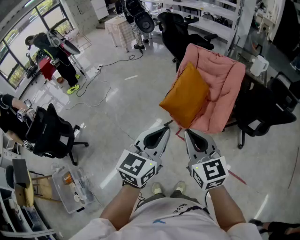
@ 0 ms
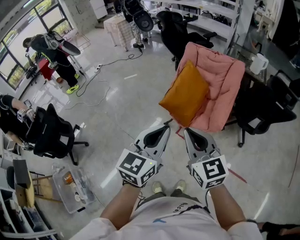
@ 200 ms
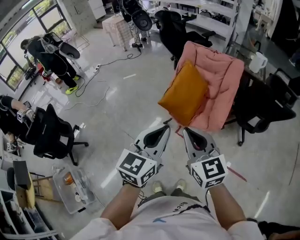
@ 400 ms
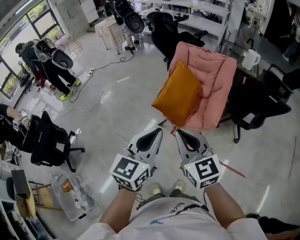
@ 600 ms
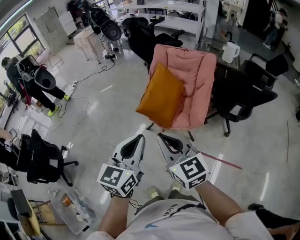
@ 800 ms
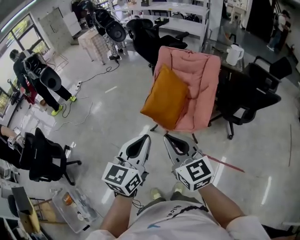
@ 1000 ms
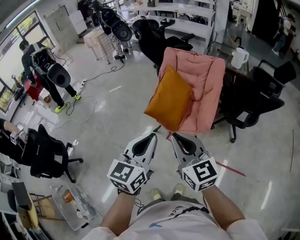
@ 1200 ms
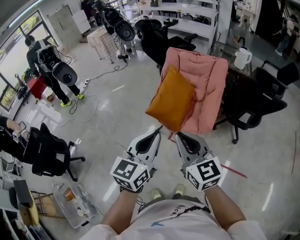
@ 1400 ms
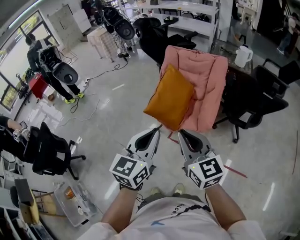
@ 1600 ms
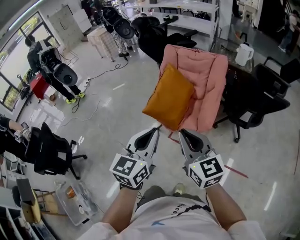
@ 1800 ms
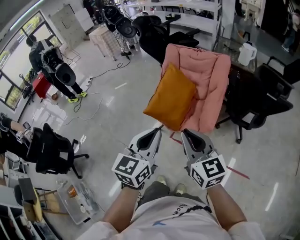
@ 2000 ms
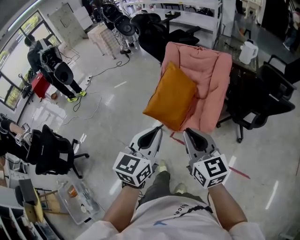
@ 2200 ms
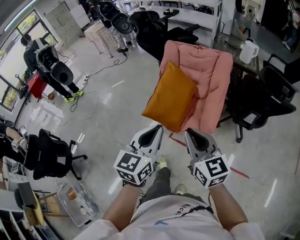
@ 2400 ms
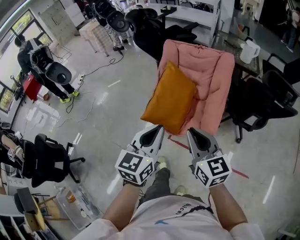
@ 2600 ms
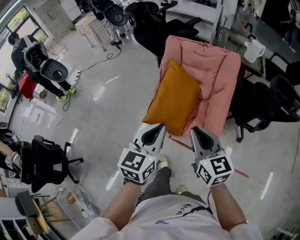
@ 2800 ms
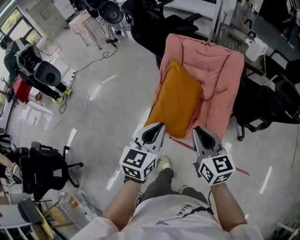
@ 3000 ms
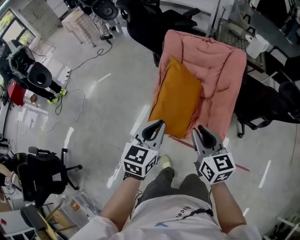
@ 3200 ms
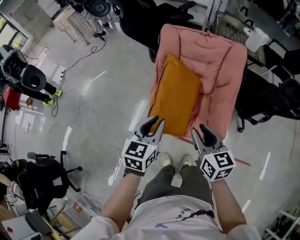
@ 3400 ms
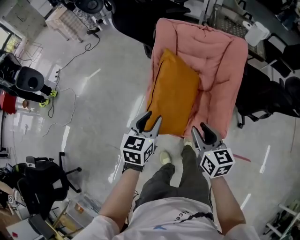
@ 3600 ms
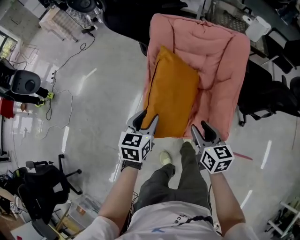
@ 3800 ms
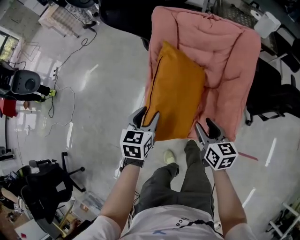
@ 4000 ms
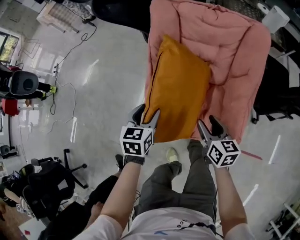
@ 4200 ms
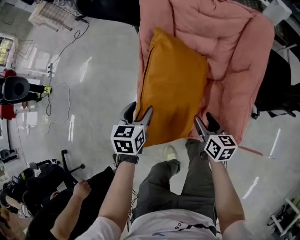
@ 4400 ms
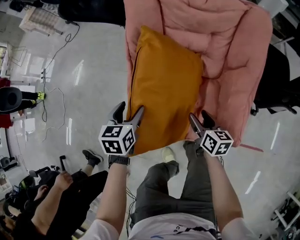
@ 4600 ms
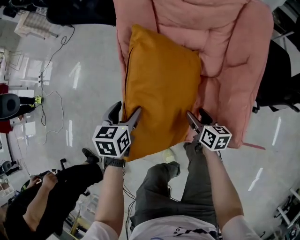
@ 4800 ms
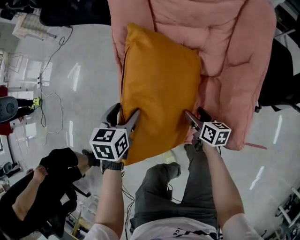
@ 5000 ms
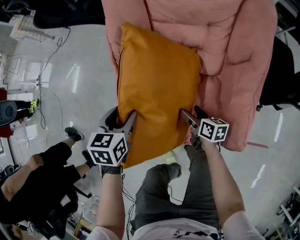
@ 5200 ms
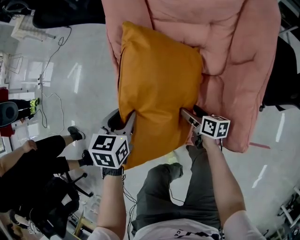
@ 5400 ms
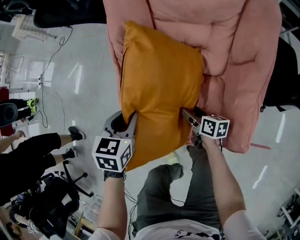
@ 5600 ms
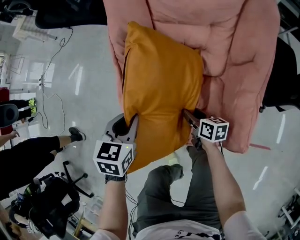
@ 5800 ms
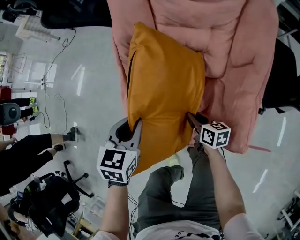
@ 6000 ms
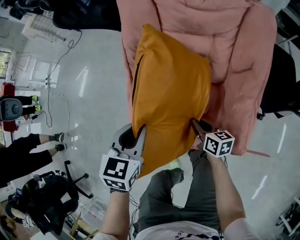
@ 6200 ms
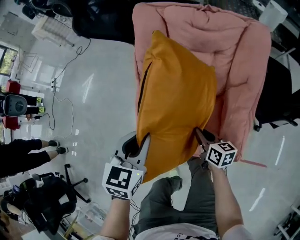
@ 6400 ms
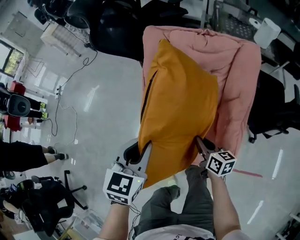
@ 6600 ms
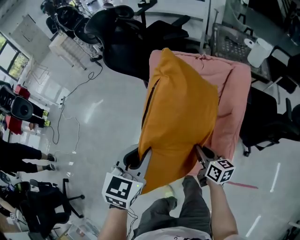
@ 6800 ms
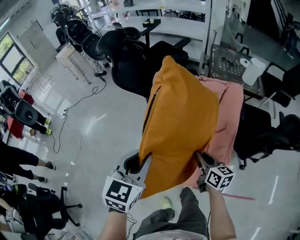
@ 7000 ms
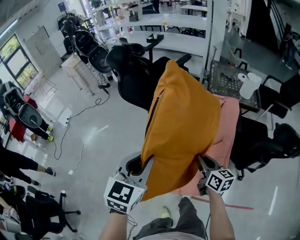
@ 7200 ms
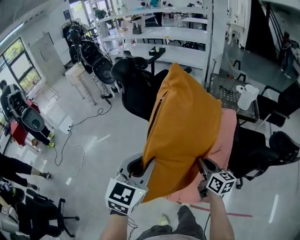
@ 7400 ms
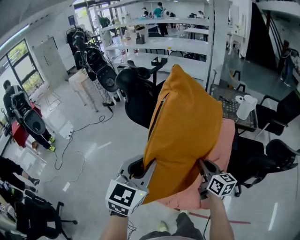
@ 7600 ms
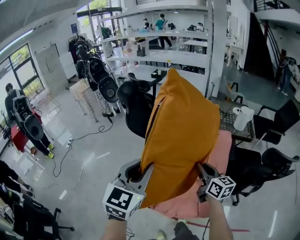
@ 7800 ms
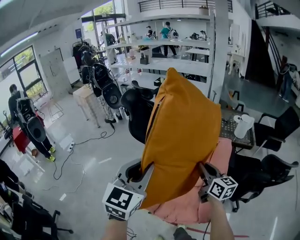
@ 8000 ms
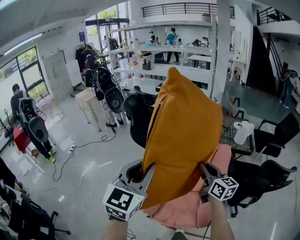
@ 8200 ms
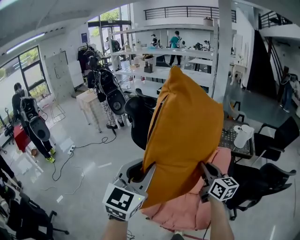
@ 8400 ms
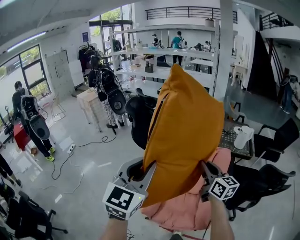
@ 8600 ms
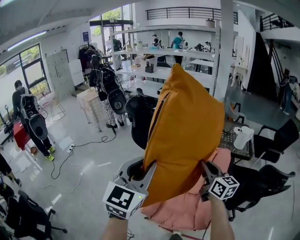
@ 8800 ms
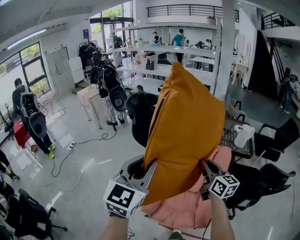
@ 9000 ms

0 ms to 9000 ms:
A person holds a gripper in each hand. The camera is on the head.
0 ms to 1600 ms: Both grippers move to the right, some 5 cm.
1600 ms to 3000 ms: Both grippers travel together forward and downward, approximately 30 cm.
3000 ms to 4400 ms: Both grippers travel together downward and forward, about 40 cm. The left gripper swivels approximately 30 degrees, and opens its fingers, while the right gripper turns by approximately 30 degrees, and opens its fingers.
4400 ms to 6000 ms: The left gripper shifts approximately 5 cm to the right, and closes up. Meanwhile the right gripper goes some 15 cm downward, and closes its fingers.
6000 ms to 7600 ms: The two grippers go roughly 50 cm upward. The left gripper angles its fingers upward, by approximately 30 degrees. Meanwhile the right gripper swivels about 40 degrees.
7600 ms to 9000 ms: Both grippers move upward, about 15 cm.

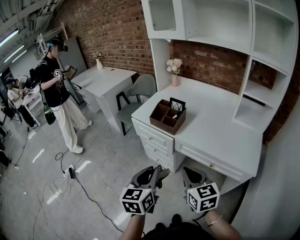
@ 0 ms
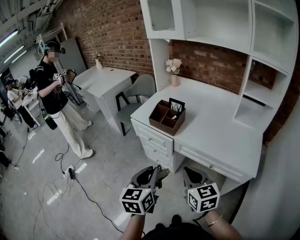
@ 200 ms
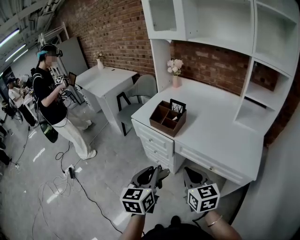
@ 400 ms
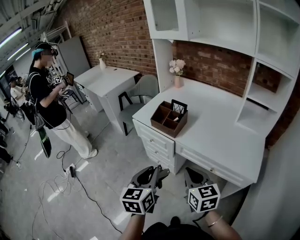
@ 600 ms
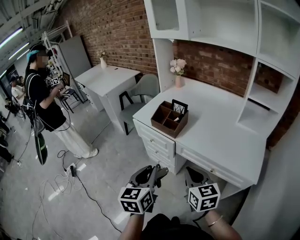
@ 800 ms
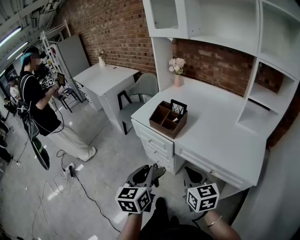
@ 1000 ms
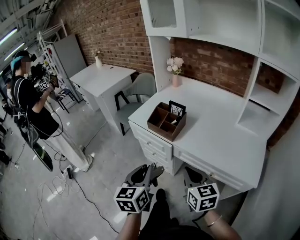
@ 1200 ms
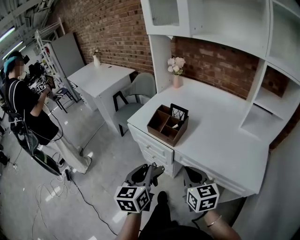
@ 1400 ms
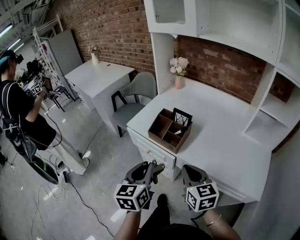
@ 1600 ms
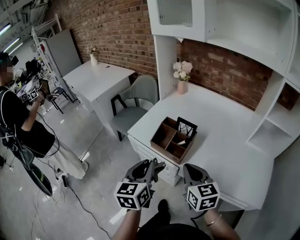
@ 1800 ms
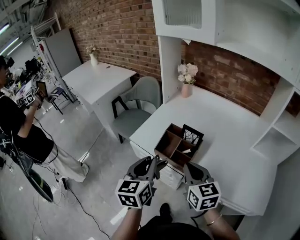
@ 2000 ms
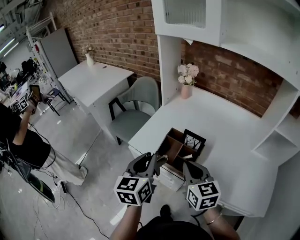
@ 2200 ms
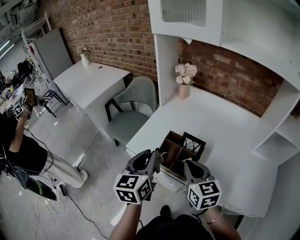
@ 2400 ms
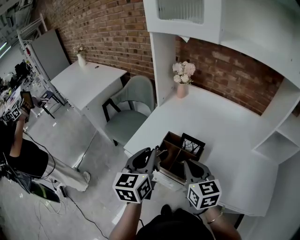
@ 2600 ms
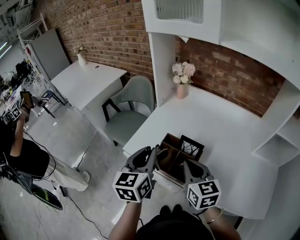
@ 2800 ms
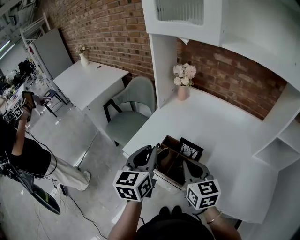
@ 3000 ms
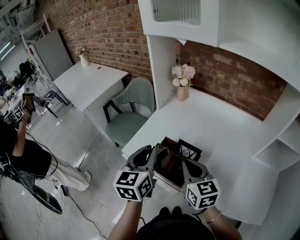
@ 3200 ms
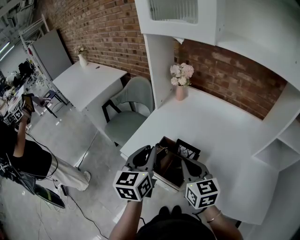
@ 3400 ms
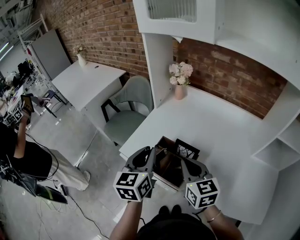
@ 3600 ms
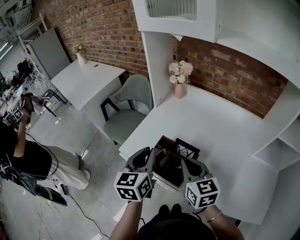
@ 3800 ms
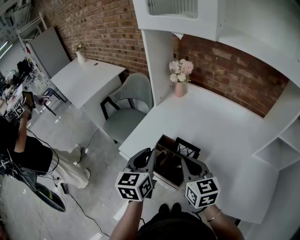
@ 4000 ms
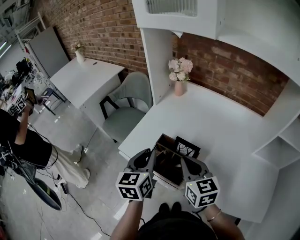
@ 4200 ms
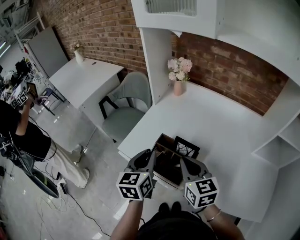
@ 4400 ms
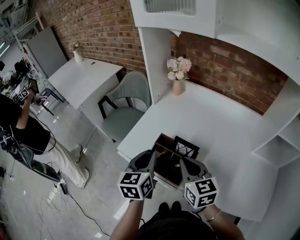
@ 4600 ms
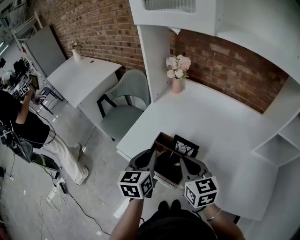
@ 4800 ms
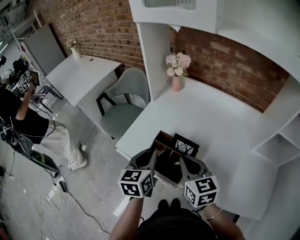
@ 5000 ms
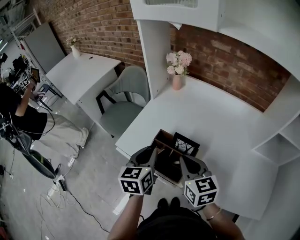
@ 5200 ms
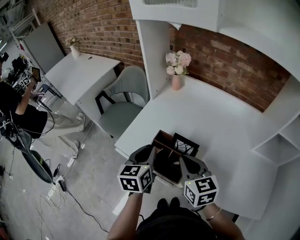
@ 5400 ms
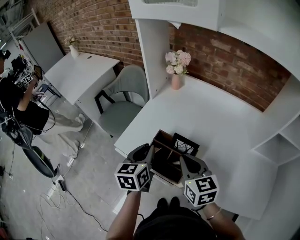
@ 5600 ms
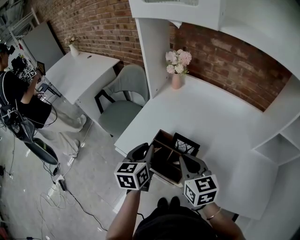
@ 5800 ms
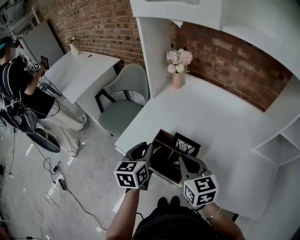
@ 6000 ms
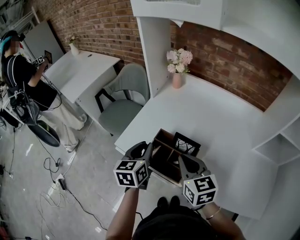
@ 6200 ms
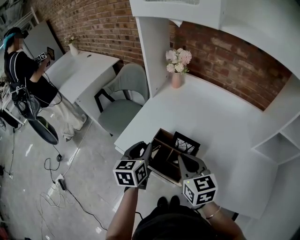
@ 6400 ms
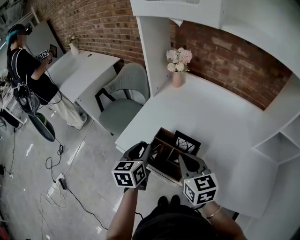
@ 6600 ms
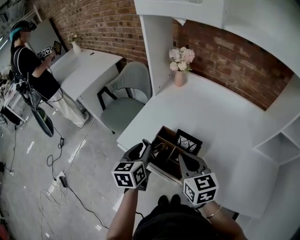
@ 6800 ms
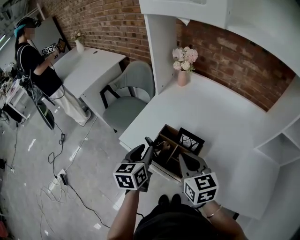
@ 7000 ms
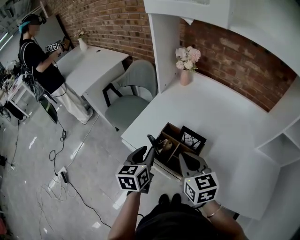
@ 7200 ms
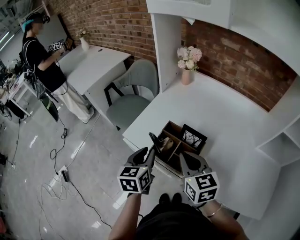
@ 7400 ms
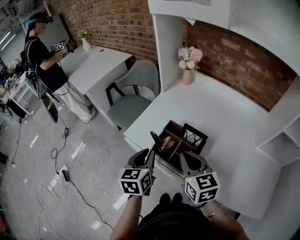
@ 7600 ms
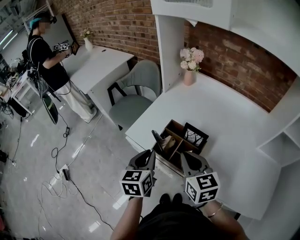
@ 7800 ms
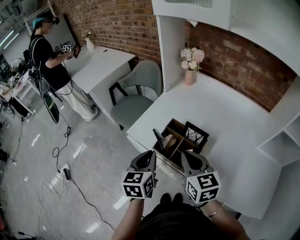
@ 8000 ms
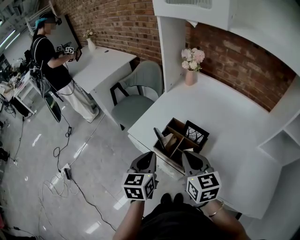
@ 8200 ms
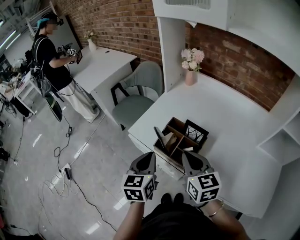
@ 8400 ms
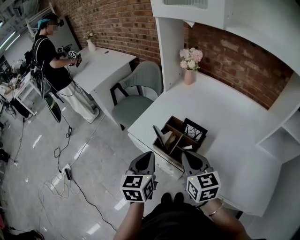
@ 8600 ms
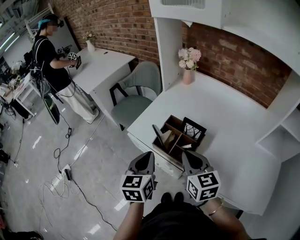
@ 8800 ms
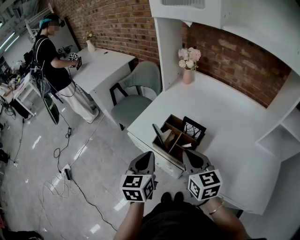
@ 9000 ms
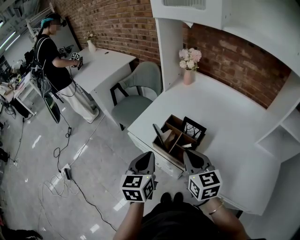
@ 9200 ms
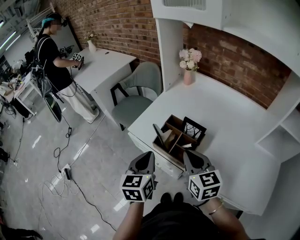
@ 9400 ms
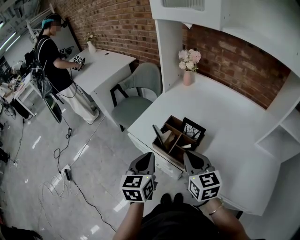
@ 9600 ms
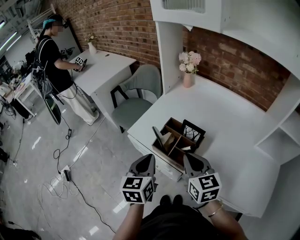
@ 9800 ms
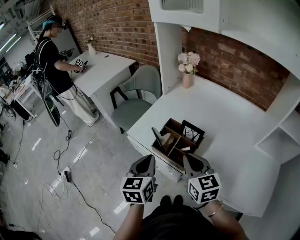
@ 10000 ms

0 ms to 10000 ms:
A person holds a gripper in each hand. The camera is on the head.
0 ms to 1400 ms: The two grippers go roughly 10 cm forward.
1400 ms to 2800 ms: Both grippers travel together forward, some 30 cm.
2800 ms to 4200 ms: The left gripper changes place by roughly 5 cm.
4200 ms to 5800 ms: The left gripper shifts by approximately 5 cm.
5800 ms to 7200 ms: The left gripper shifts by about 5 cm.
7200 ms to 8600 ms: The left gripper heads backward, covering about 10 cm, and closes its fingers.
8600 ms to 10000 ms: There are only small adjustments of the grippers.

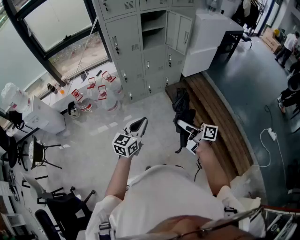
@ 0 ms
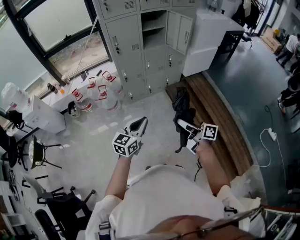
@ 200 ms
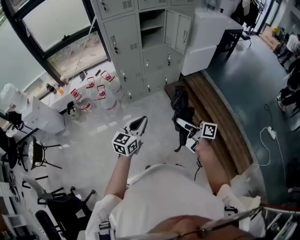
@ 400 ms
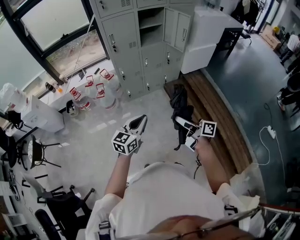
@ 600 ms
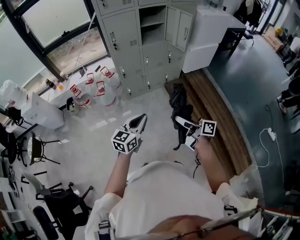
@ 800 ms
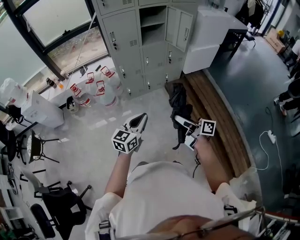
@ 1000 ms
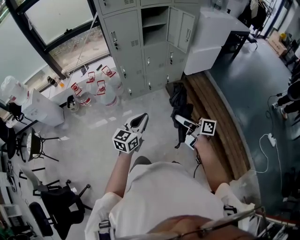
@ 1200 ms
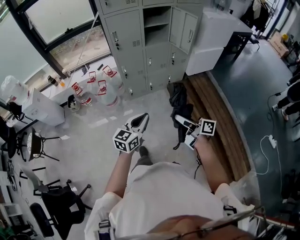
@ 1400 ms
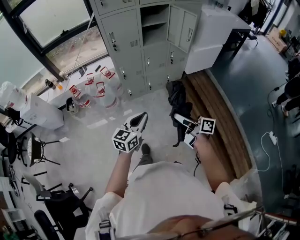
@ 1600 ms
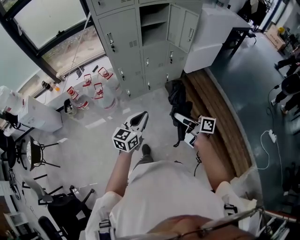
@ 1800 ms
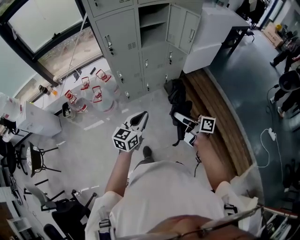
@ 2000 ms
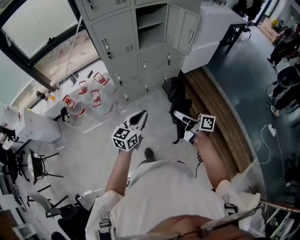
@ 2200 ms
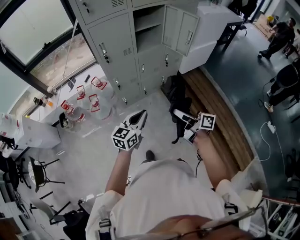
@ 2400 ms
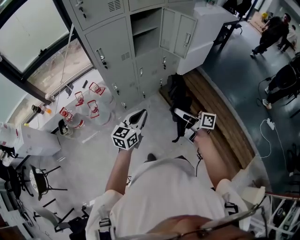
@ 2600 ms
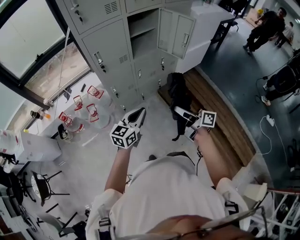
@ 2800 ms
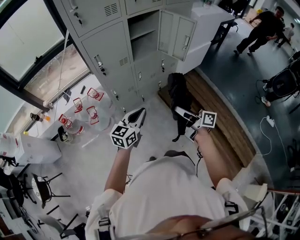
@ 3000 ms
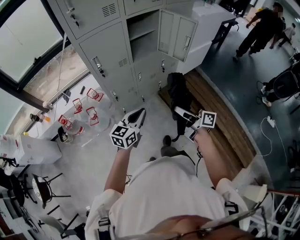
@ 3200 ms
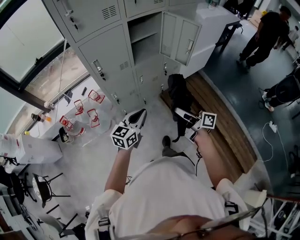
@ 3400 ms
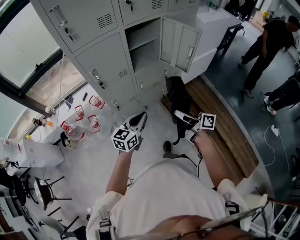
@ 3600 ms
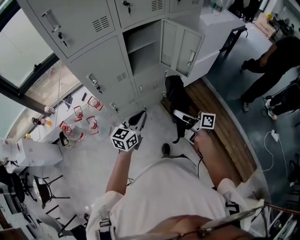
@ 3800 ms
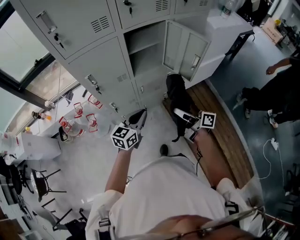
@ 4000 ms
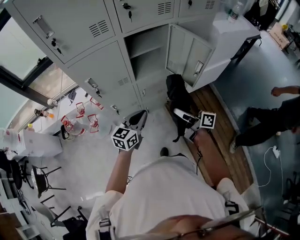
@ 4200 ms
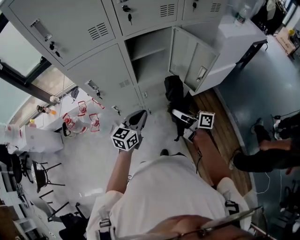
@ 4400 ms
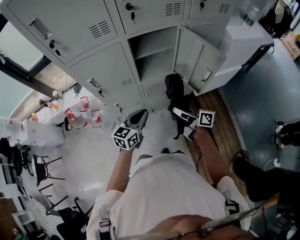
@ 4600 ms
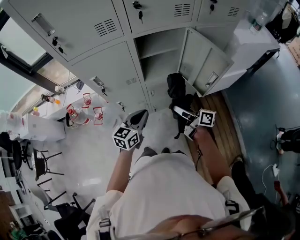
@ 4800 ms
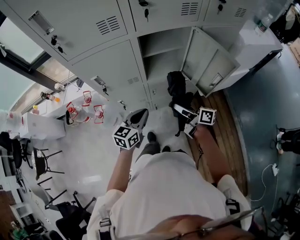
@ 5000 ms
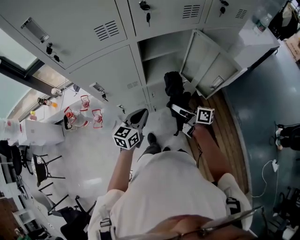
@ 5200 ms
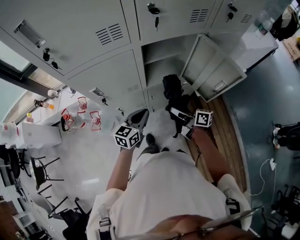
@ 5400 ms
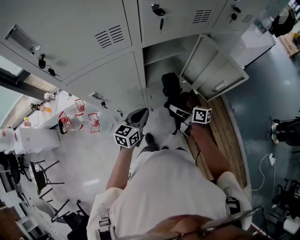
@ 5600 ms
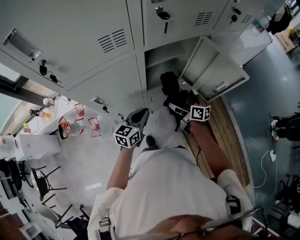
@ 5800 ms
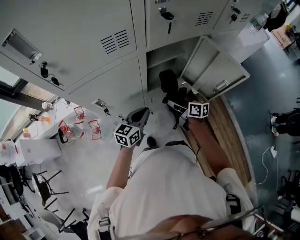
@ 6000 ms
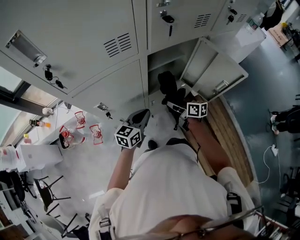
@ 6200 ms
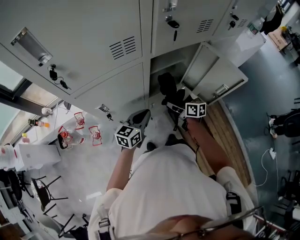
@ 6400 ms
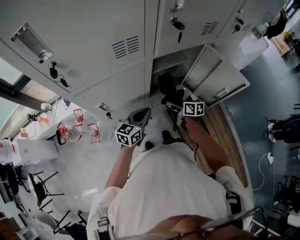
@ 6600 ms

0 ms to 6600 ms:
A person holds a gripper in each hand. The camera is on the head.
0 ms to 1600 ms: The two grippers go roughly 10 cm forward.
1600 ms to 3200 ms: The grippers both shift forward by about 25 cm.
3200 ms to 5000 ms: Both grippers travel together forward, approximately 25 cm.
5000 ms to 6600 ms: The left gripper is displaced forward by approximately 15 cm, while the right gripper heads forward and downward, covering about 20 cm, and swivels approximately 30 degrees.
